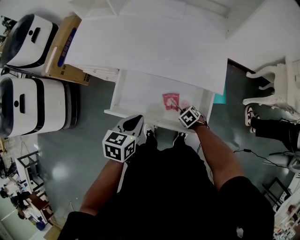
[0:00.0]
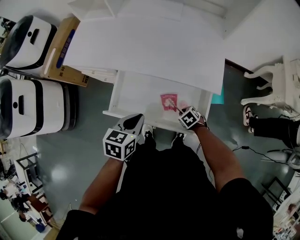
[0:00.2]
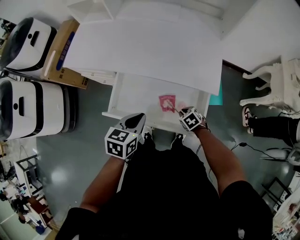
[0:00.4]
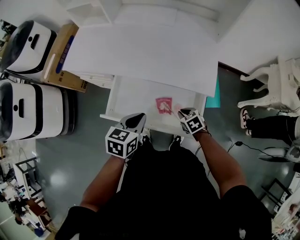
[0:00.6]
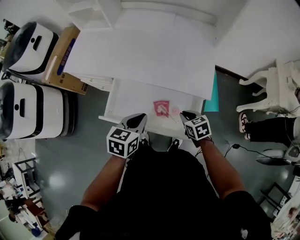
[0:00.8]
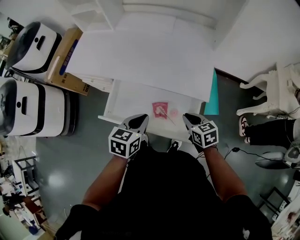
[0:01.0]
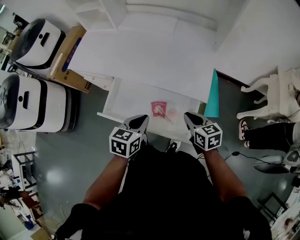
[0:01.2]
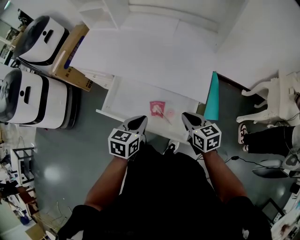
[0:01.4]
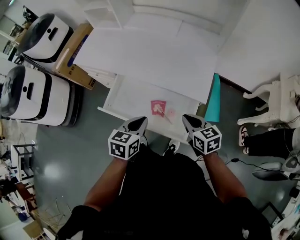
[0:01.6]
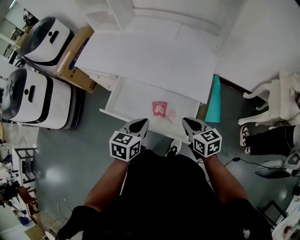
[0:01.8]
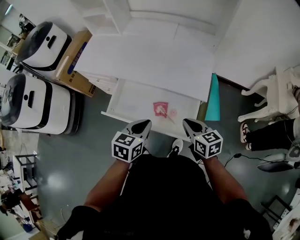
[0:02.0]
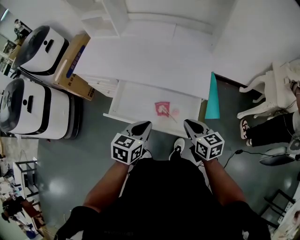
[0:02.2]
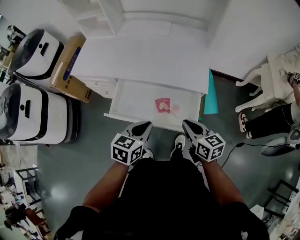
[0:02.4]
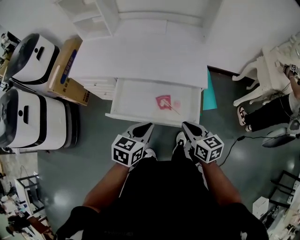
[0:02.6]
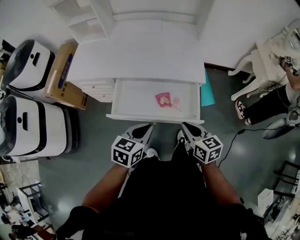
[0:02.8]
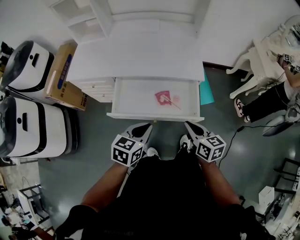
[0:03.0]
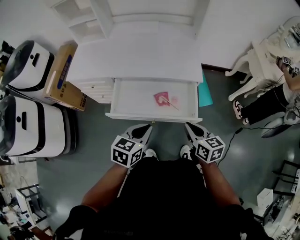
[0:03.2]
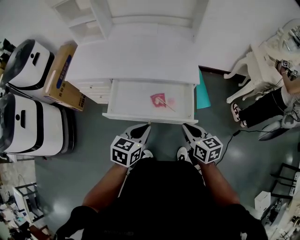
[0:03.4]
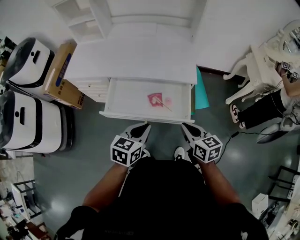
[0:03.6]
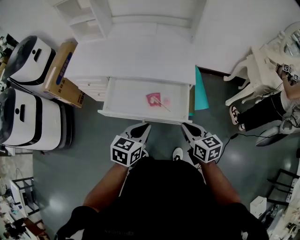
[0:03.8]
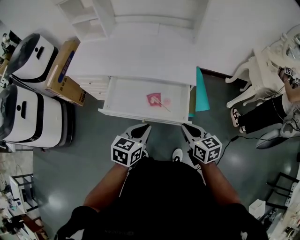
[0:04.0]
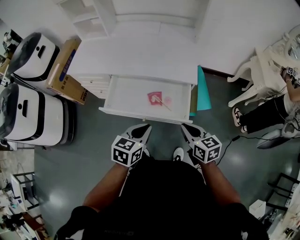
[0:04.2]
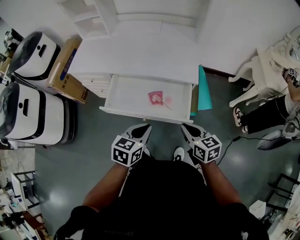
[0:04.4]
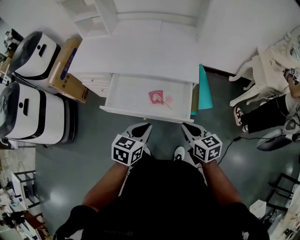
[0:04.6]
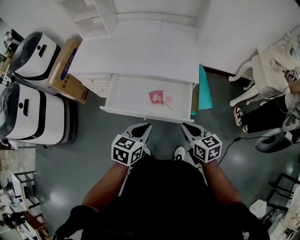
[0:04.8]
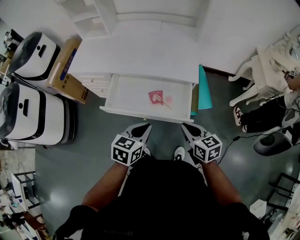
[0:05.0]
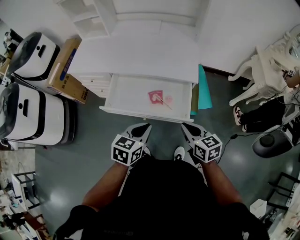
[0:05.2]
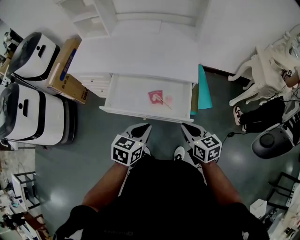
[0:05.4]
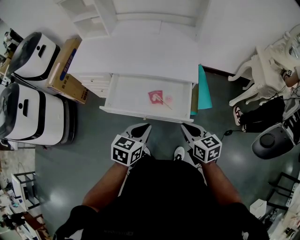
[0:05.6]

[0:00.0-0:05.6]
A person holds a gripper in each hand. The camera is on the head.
0:00.0 to 0:01.4: The left gripper ends up about 10 cm from where it was. The right gripper goes approximately 25 cm upward, and angles its fingers upward, by approximately 40 degrees.
0:01.4 to 0:02.8: The grippers both shift backward and to the left by approximately 15 cm. The left gripper rotates roughly 20 degrees.
0:02.8 to 0:04.2: The grippers both shift to the right by about 5 cm.
0:04.2 to 0:05.6: Both grippers stay about where they are.

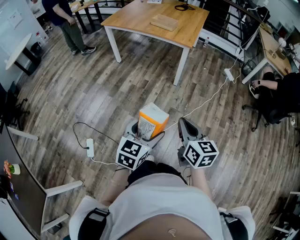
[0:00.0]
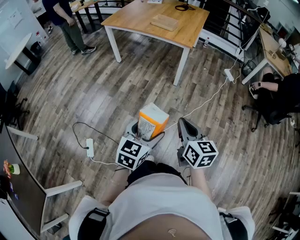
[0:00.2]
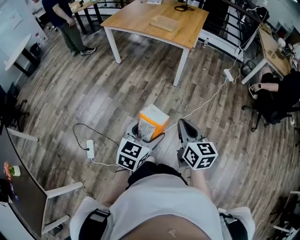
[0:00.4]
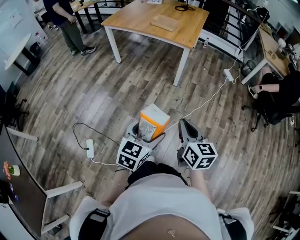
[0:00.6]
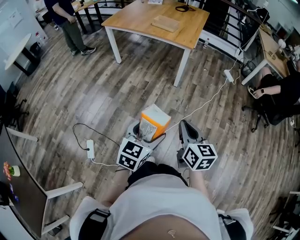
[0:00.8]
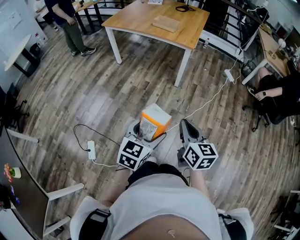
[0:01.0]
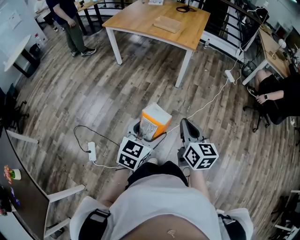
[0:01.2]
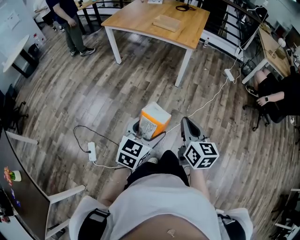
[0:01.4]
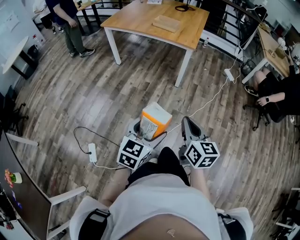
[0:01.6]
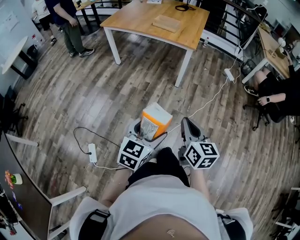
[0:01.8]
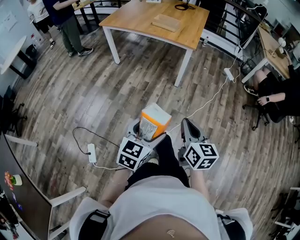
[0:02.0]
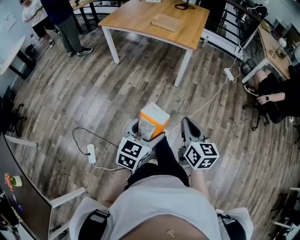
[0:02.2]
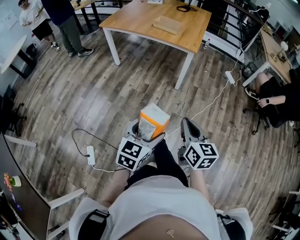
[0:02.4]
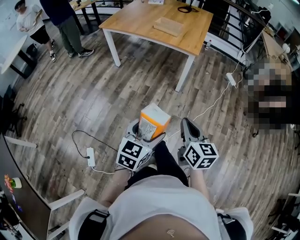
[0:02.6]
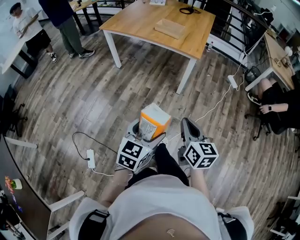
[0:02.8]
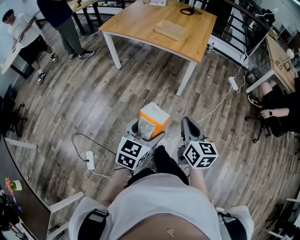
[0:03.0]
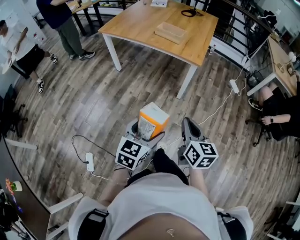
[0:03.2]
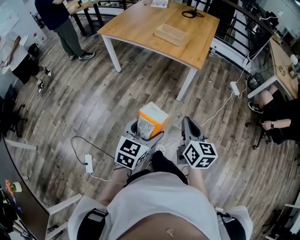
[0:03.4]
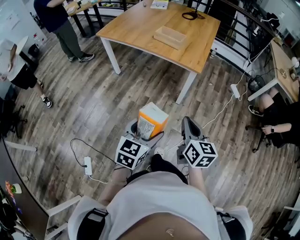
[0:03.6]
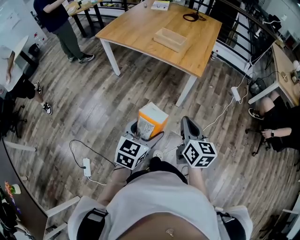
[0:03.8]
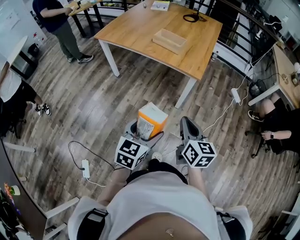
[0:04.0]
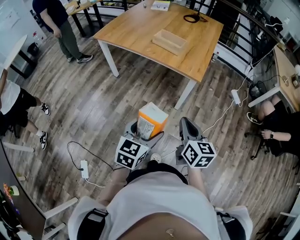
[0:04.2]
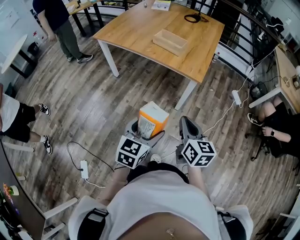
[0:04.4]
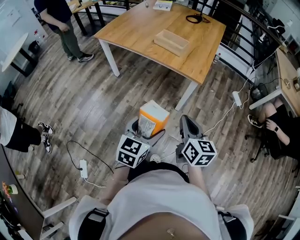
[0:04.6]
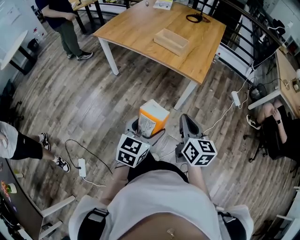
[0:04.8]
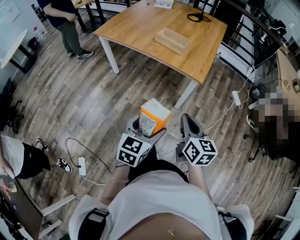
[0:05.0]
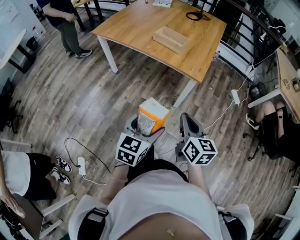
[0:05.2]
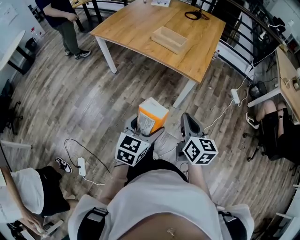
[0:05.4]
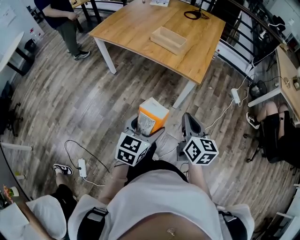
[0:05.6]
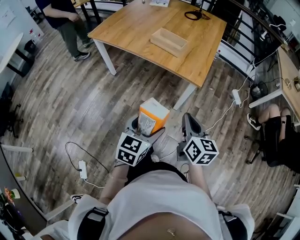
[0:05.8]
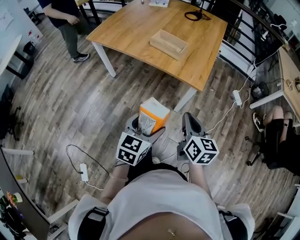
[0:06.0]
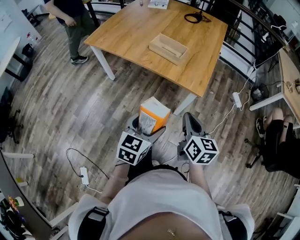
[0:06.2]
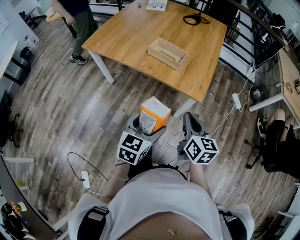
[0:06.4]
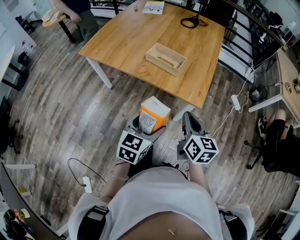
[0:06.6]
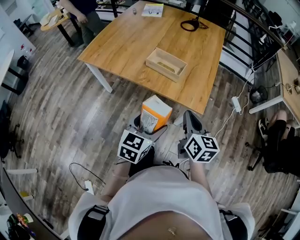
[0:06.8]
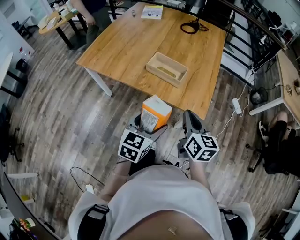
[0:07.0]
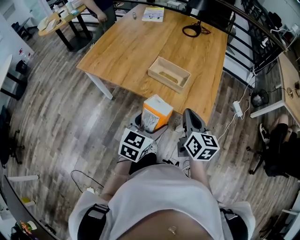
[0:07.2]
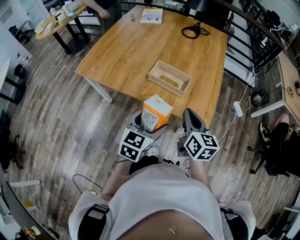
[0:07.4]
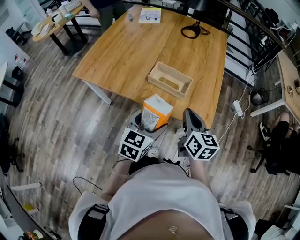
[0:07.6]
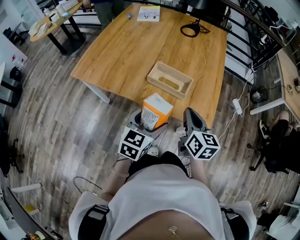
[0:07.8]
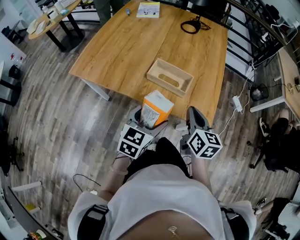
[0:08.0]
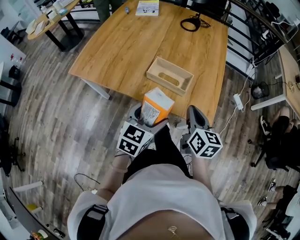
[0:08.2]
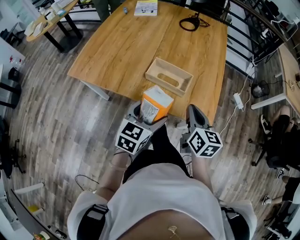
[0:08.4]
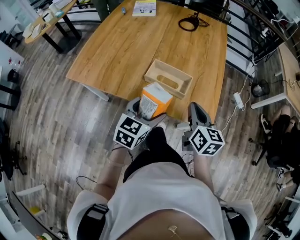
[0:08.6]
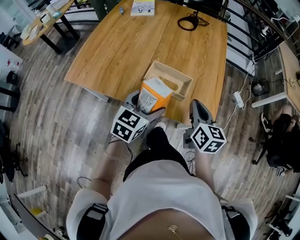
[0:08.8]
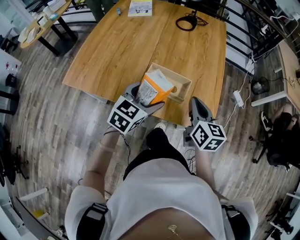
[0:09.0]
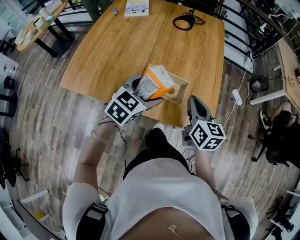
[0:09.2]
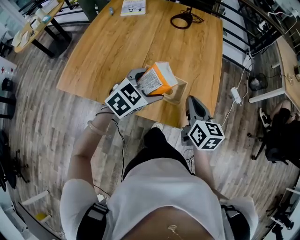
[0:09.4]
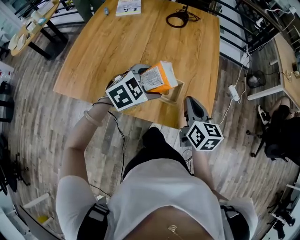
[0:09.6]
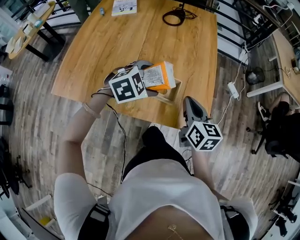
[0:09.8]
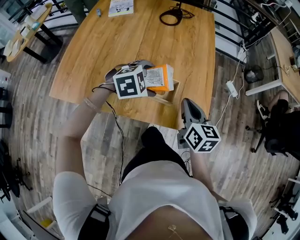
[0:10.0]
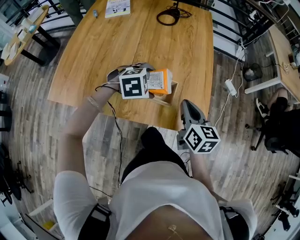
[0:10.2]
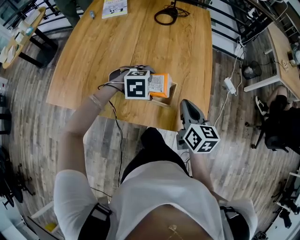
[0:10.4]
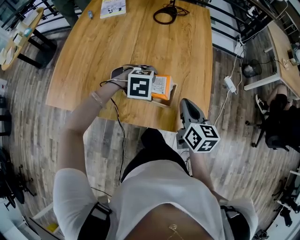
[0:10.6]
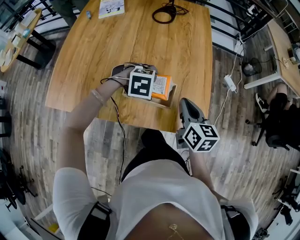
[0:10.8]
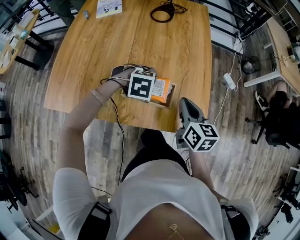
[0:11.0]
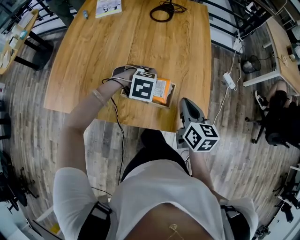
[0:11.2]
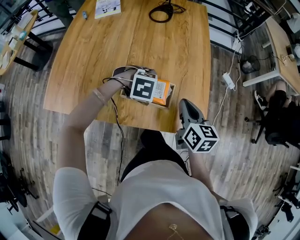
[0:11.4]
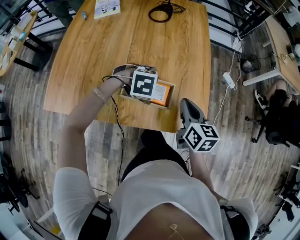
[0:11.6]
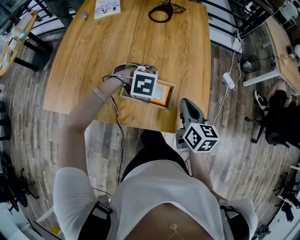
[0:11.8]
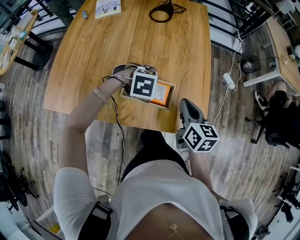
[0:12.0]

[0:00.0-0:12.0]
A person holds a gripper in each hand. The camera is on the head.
0:00.0 to 0:01.6: The left gripper changes place by some 5 cm.
0:01.6 to 0:03.0: Both grippers travel together forward, about 15 cm.
0:03.0 to 0:04.4: Both grippers move forward, approximately 20 cm.
0:04.4 to 0:06.0: Both grippers travel together forward, about 10 cm.
0:06.0 to 0:07.6: The two grippers go some 25 cm forward.
0:07.6 to 0:09.0: Both grippers move forward, about 10 cm.
0:09.0 to 0:10.4: The left gripper shifts some 15 cm downward and forward, and angles its fingers downward, by about 40 degrees.
0:10.4 to 0:12.0: The grippers stay close to where they were, moving slightly.

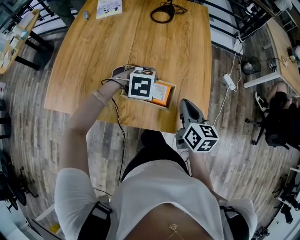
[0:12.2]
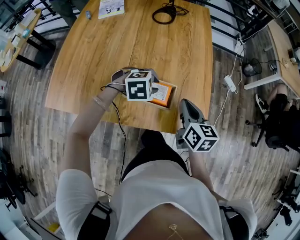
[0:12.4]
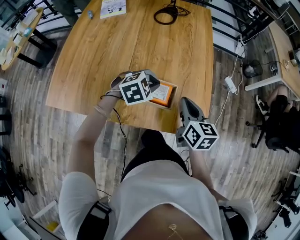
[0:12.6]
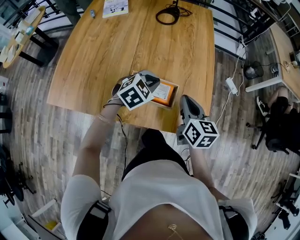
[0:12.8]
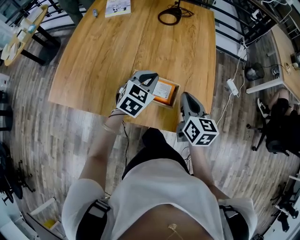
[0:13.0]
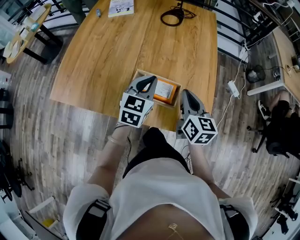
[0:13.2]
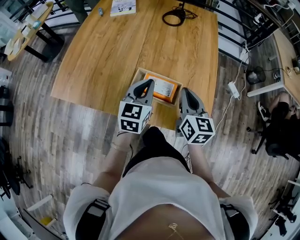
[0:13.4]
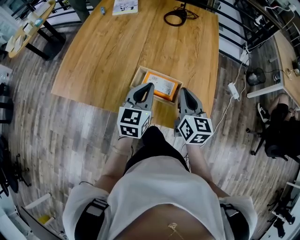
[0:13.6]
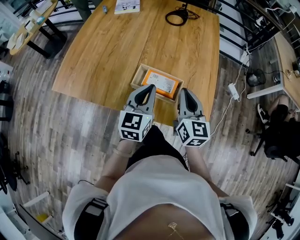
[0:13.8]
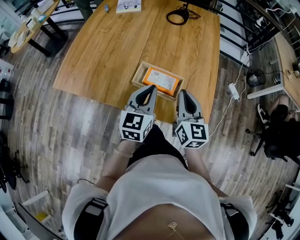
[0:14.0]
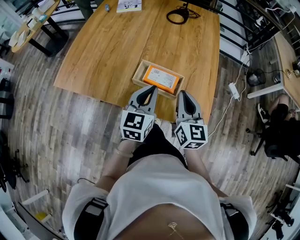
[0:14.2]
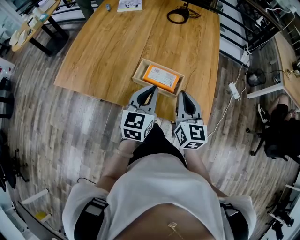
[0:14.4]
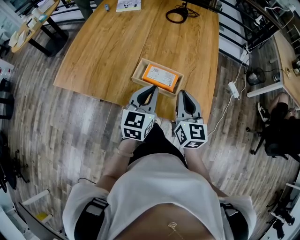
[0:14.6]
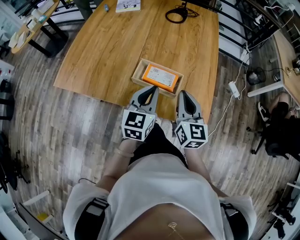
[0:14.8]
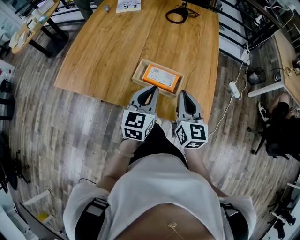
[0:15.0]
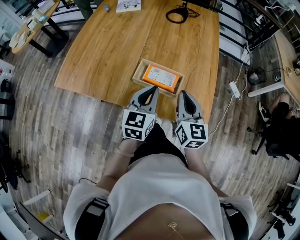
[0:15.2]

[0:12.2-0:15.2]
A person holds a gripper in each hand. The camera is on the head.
0:12.2 to 0:13.8: The left gripper shifts approximately 10 cm upward, angles its fingers upward, by some 60 degrees, and closes its fingers. The right gripper ends up some 5 cm from where it was, and swivels about 20 degrees.
0:13.8 to 0:15.2: The grippers move only a little.

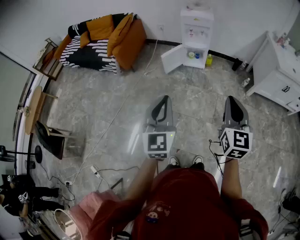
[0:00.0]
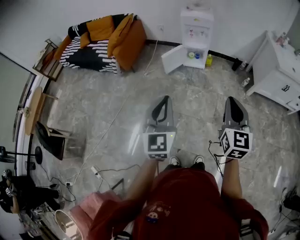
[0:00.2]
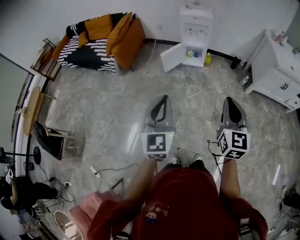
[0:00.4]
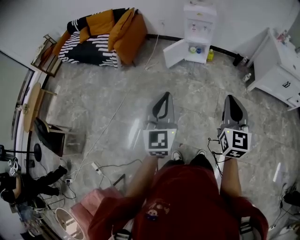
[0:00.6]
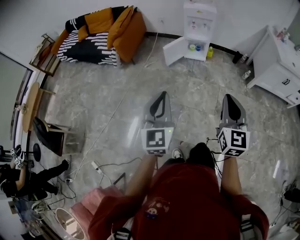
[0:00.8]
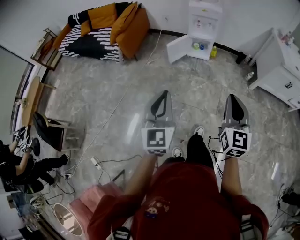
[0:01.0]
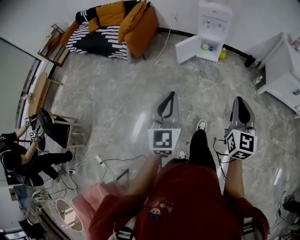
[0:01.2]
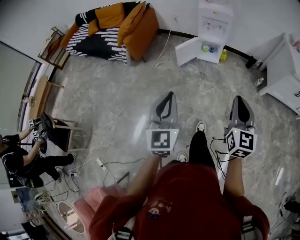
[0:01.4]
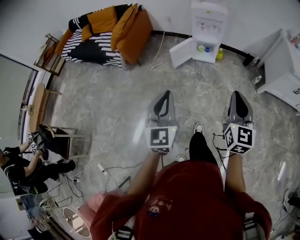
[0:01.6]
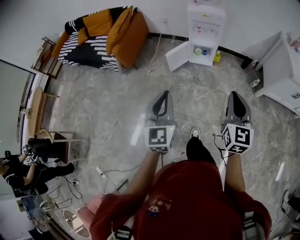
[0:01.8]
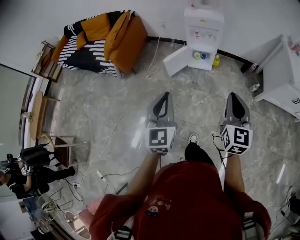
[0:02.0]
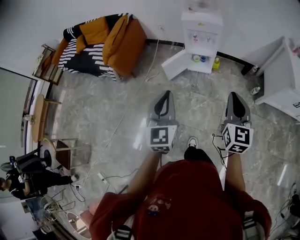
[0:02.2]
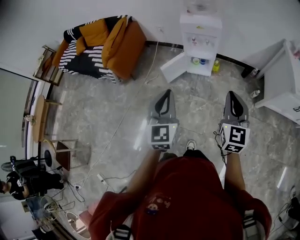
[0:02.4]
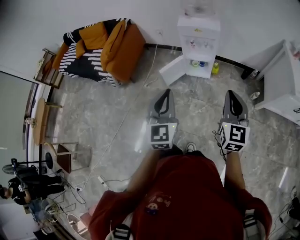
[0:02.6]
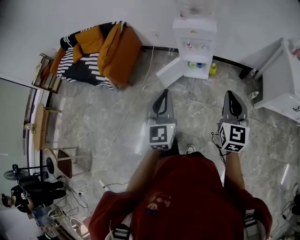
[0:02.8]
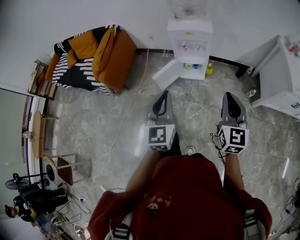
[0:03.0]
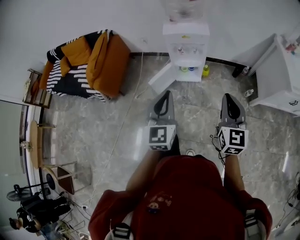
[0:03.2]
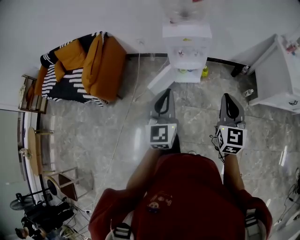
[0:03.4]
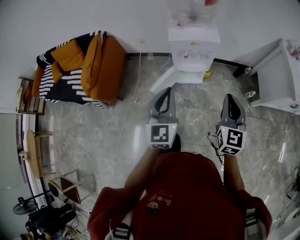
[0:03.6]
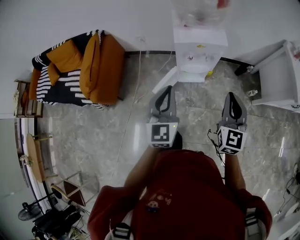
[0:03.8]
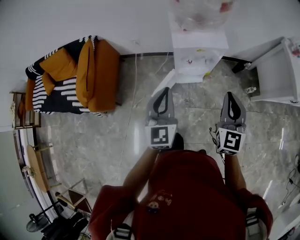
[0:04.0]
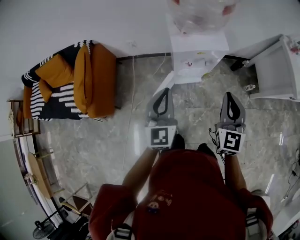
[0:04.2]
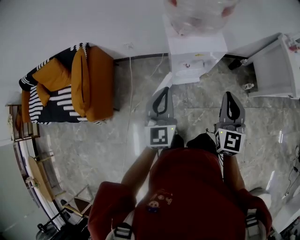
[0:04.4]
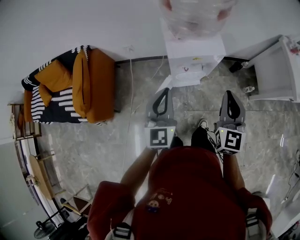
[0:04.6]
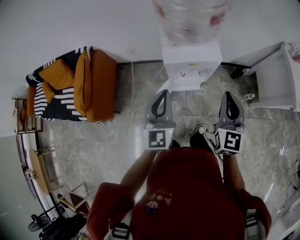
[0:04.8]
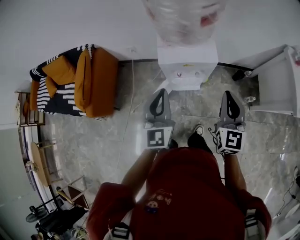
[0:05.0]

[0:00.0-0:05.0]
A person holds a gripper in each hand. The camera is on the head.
0:00.0 to 0:01.6: The grippers both shift forward and to the left by roughly 10 cm.
0:01.6 to 0:03.4: The pair of grippers is taken forward, some 40 cm.
0:03.4 to 0:05.0: The grippers both shift forward by about 25 cm.
